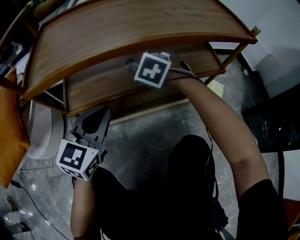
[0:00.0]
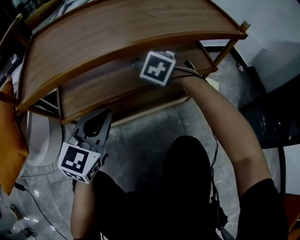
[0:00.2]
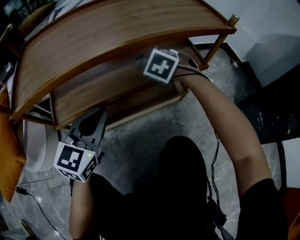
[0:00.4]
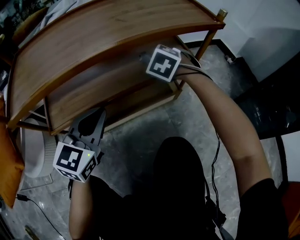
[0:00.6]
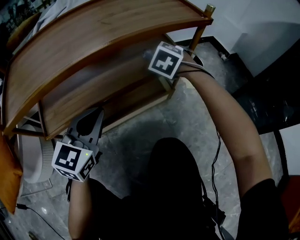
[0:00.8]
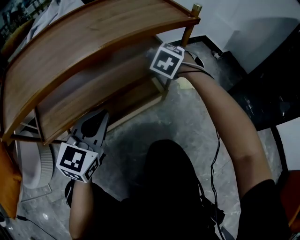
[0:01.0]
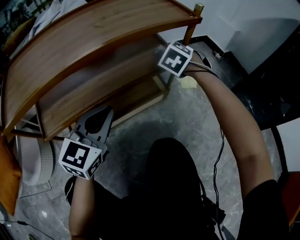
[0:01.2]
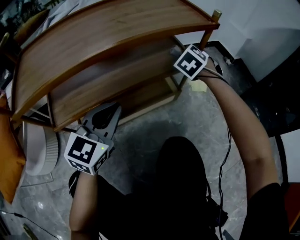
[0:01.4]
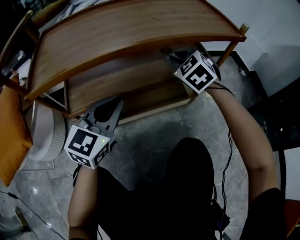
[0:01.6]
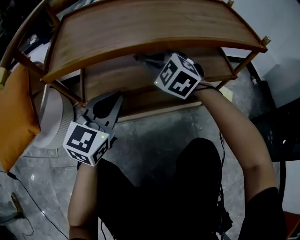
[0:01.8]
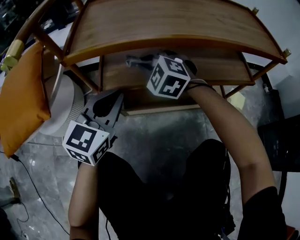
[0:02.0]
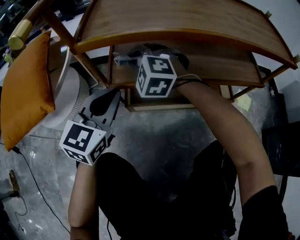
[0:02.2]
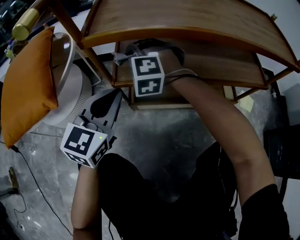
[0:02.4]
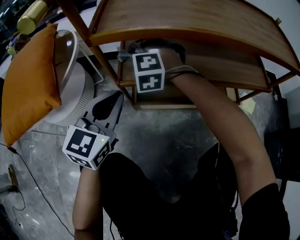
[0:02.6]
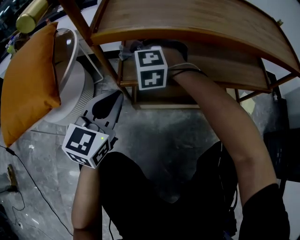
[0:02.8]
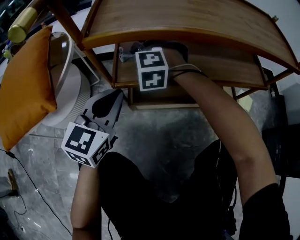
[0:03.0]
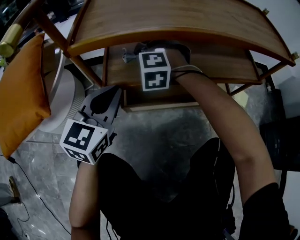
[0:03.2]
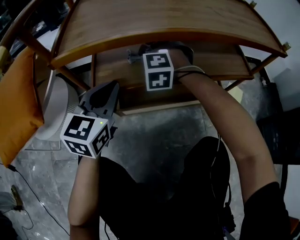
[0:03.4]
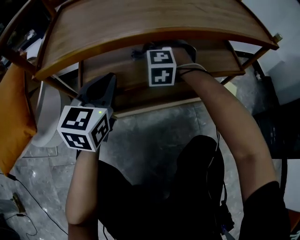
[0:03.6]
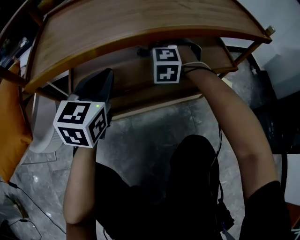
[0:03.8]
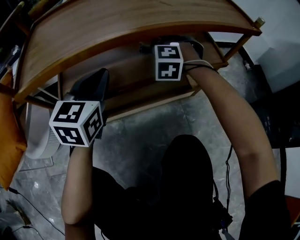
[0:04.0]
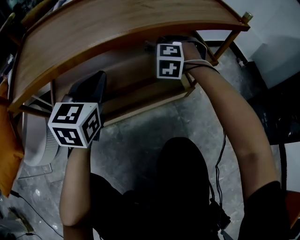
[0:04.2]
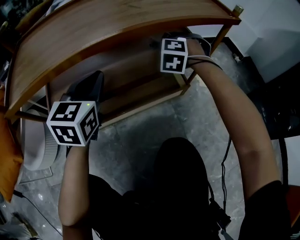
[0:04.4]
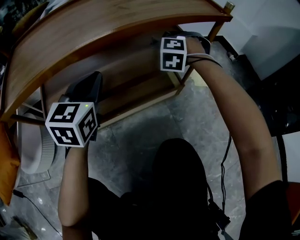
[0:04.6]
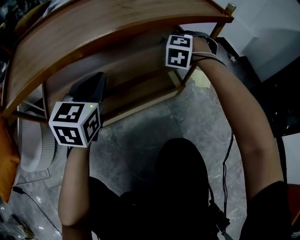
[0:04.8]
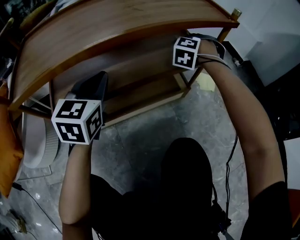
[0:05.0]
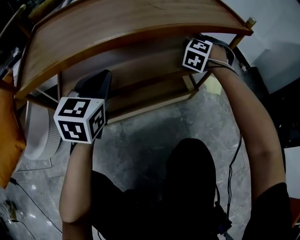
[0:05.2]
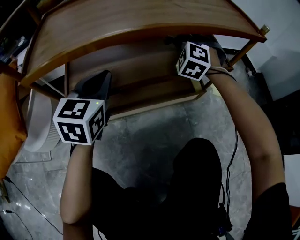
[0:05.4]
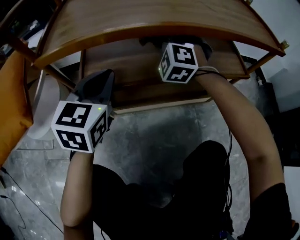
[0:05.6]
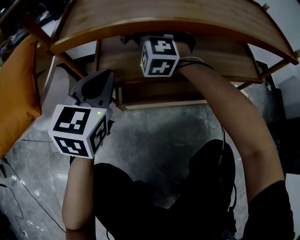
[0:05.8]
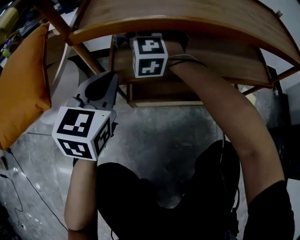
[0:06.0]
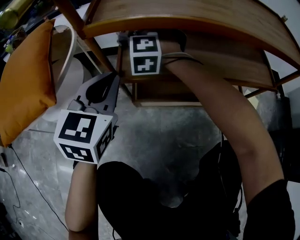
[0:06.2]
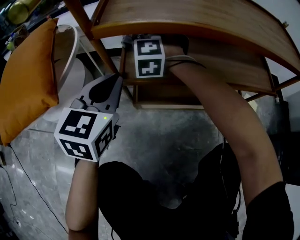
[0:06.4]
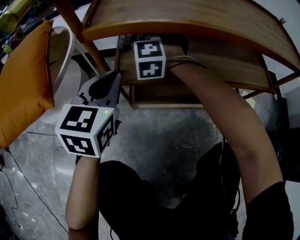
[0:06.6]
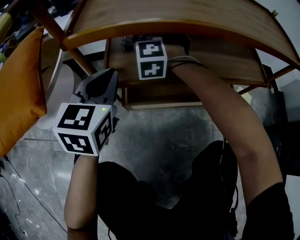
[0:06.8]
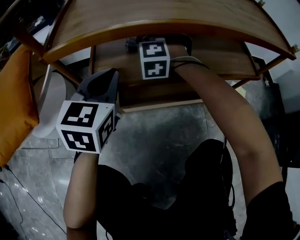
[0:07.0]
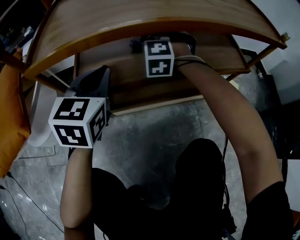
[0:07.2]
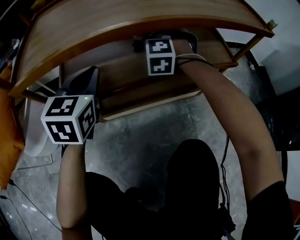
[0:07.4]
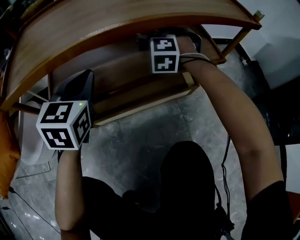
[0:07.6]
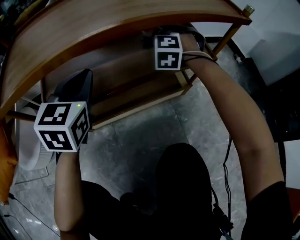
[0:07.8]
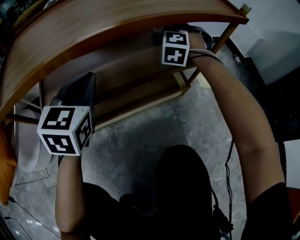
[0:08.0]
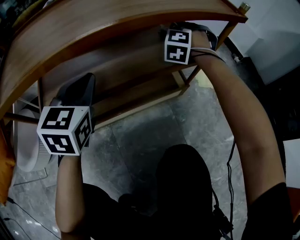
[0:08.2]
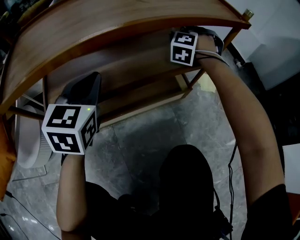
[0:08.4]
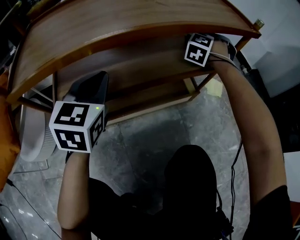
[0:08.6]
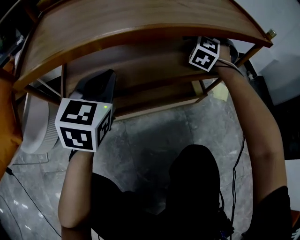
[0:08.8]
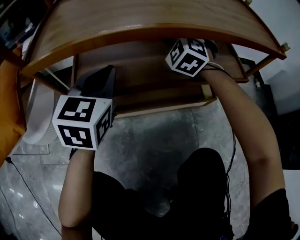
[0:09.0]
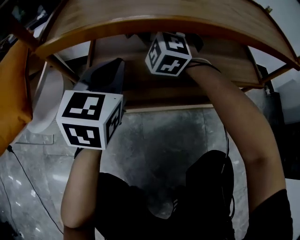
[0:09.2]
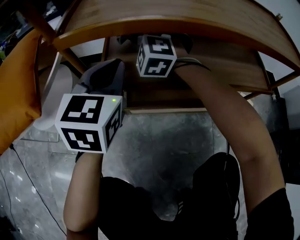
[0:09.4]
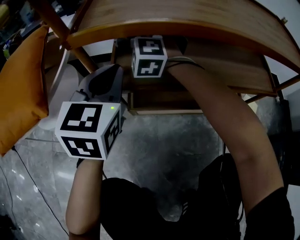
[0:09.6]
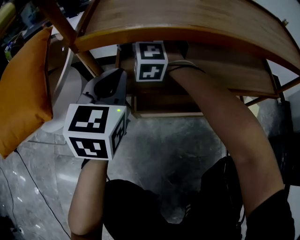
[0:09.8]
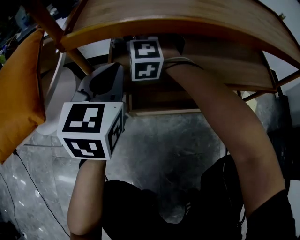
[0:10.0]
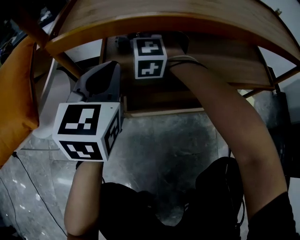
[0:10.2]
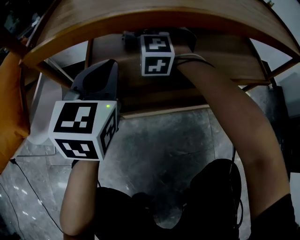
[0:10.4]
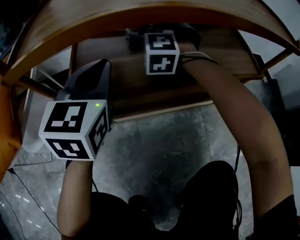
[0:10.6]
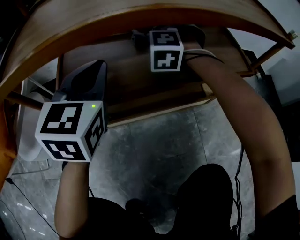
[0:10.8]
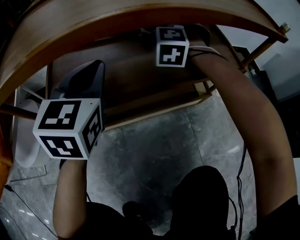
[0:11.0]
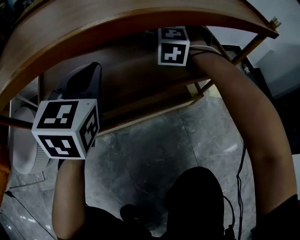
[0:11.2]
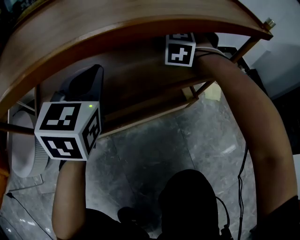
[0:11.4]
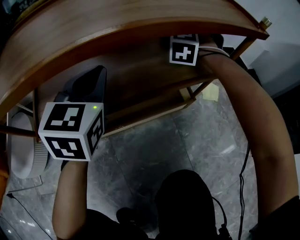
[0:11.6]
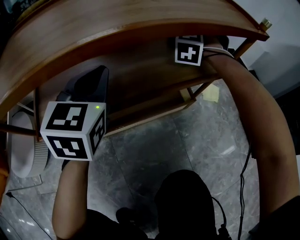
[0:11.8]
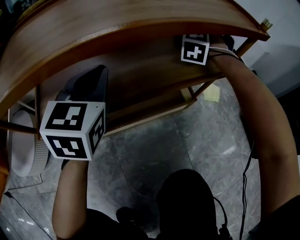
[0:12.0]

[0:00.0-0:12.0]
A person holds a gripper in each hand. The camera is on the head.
0:00.0 to 0:01.6: The right gripper rotates about 20 degrees.
0:01.6 to 0:03.0: The right gripper is displaced to the left by roughly 40 cm, and rolls counterclockwise, seen from behind, by some 50 degrees. Meanwhile the left gripper travels to the left by roughly 20 cm.
0:03.0 to 0:04.4: The left gripper goes approximately 25 cm to the right and forward, while the right gripper travels to the right by some 40 cm, and swivels roughly 40 degrees.
0:04.4 to 0:06.0: The left gripper moves some 20 cm. The right gripper moves some 40 cm, and swivels approximately 40 degrees.
0:06.0 to 0:07.6: The right gripper is displaced to the right by about 35 cm, and rotates some 30 degrees. Meanwhile the left gripper shifts about 15 cm to the right and forward.
0:07.6 to 0:09.0: The right gripper turns by approximately 20 degrees.
0:09.0 to 0:10.4: The right gripper goes some 15 cm to the left. The left gripper goes approximately 5 cm to the left.
0:10.4 to 0:12.0: The right gripper changes place by some 40 cm, and rotates some 40 degrees, while the left gripper ends up some 15 cm from where it was.

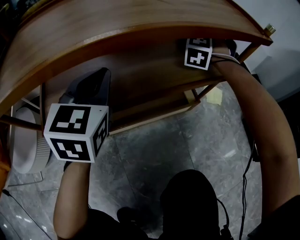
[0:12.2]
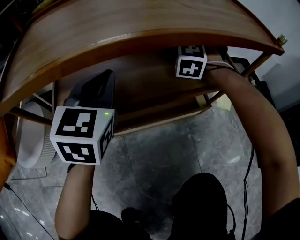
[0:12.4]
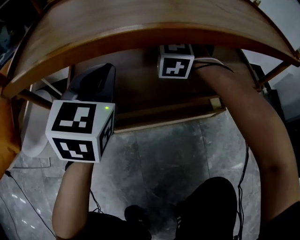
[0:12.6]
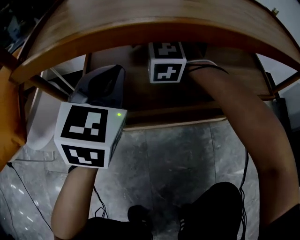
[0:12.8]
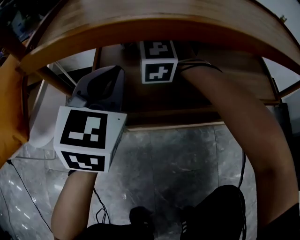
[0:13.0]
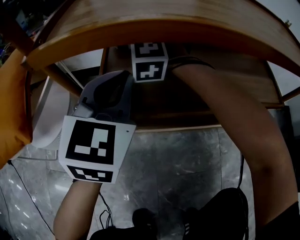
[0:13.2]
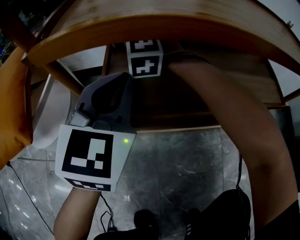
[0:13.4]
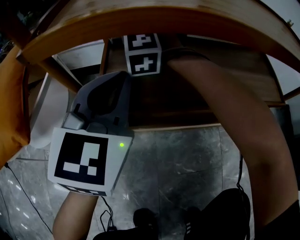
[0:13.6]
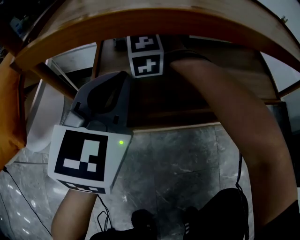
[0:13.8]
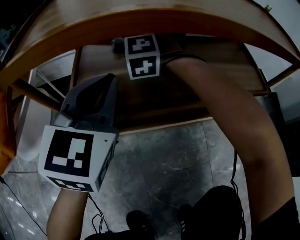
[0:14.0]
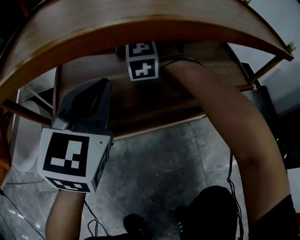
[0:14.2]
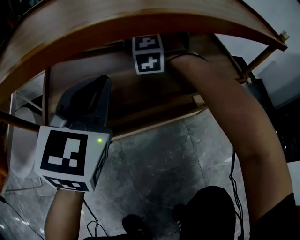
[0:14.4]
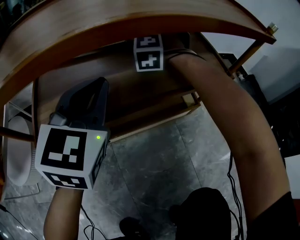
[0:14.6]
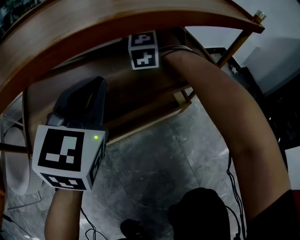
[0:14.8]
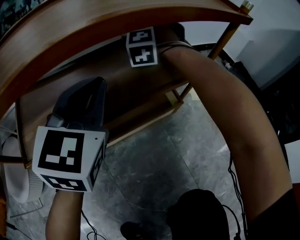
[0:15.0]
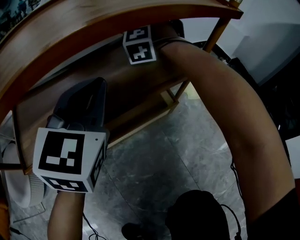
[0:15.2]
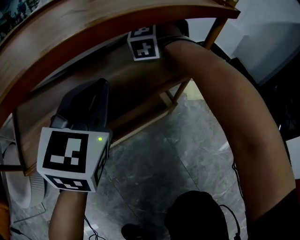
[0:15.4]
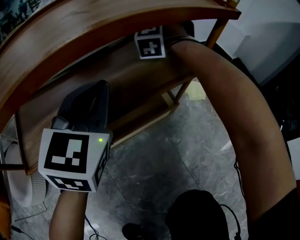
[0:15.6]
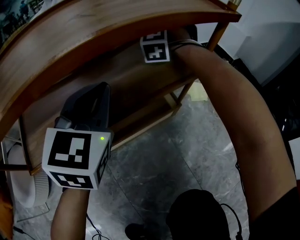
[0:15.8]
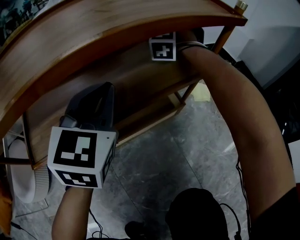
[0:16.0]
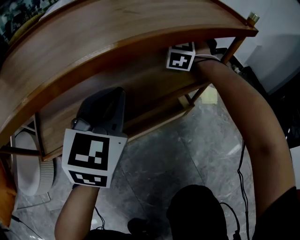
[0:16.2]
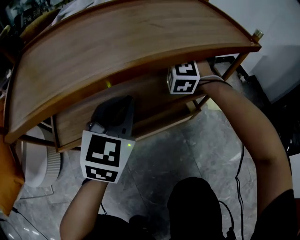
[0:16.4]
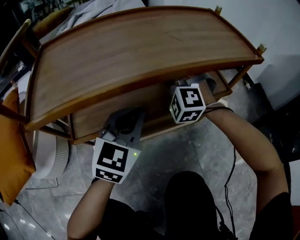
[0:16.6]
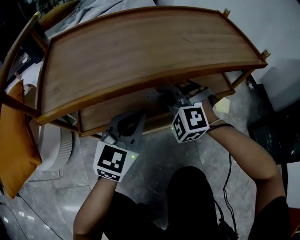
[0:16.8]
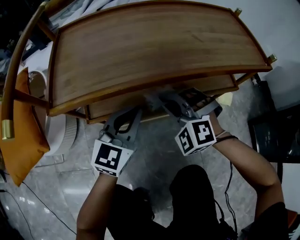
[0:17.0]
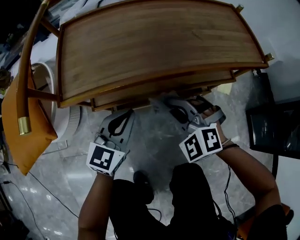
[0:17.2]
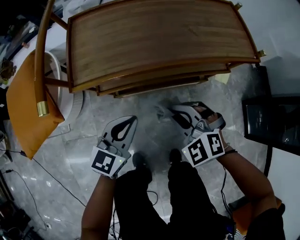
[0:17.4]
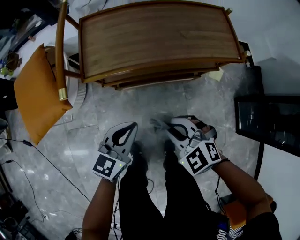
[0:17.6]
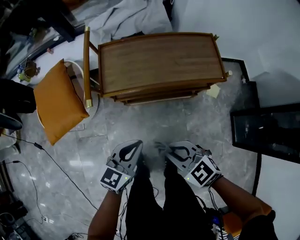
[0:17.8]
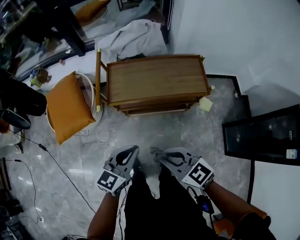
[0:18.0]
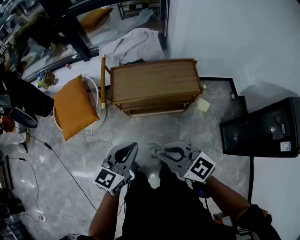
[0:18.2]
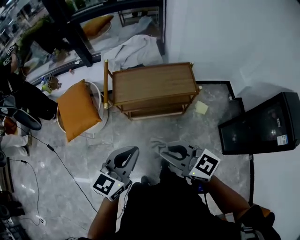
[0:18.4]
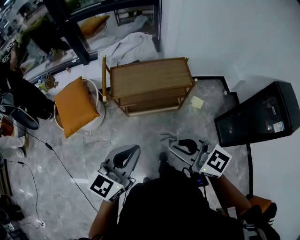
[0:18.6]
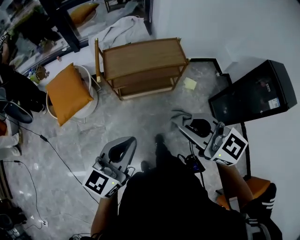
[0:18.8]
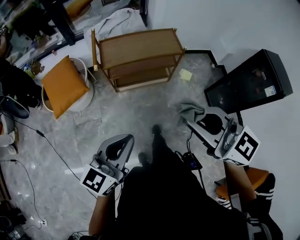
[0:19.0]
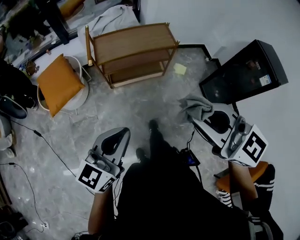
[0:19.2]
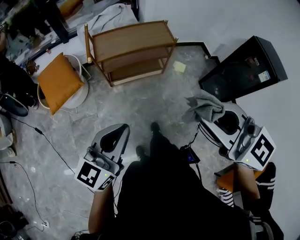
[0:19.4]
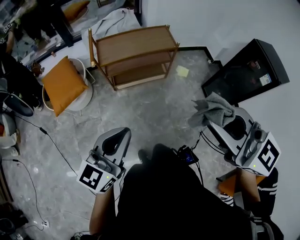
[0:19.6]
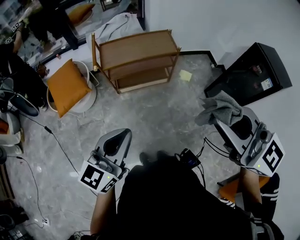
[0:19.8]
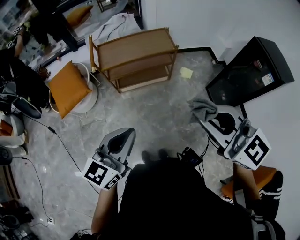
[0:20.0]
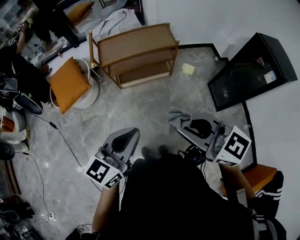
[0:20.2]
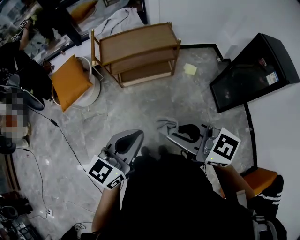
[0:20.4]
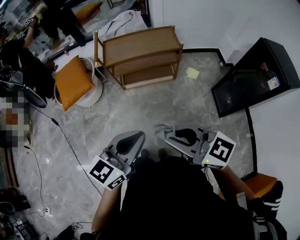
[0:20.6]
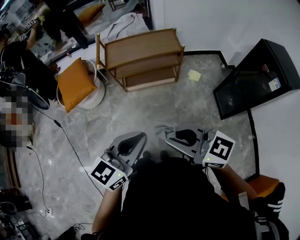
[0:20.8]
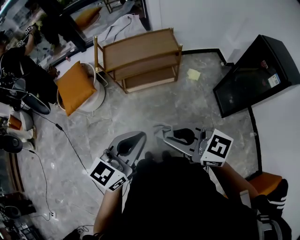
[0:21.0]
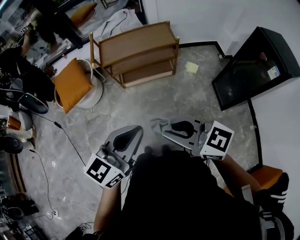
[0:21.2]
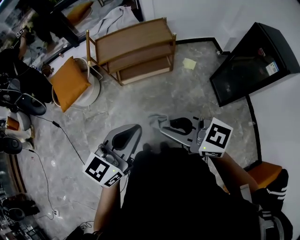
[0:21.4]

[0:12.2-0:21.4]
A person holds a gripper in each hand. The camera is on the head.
0:12.2 to 0:13.8: The left gripper shifts by approximately 15 cm. The right gripper ends up about 50 cm from where it was, and turns by some 40 degrees.
0:13.8 to 0:15.2: The left gripper shifts by roughly 25 cm, and changes its angle by about 20 degrees. The right gripper ends up some 40 cm from where it was, and turns by about 40 degrees.
0:15.2 to 0:16.8: The right gripper shifts some 30 cm backward and to the left, and swivels approximately 30 degrees, while the left gripper moves backward and to the left, some 15 cm.
0:16.8 to 0:18.4: The two grippers go some 70 cm upward and backward. The right gripper rotates some 80 degrees.
0:18.4 to 0:19.8: The left gripper is displaced backward by some 20 cm. Meanwhile the right gripper is displaced backward and upward by some 30 cm, and rotates approximately 30 degrees.
0:19.8 to 0:21.4: The right gripper heads downward, covering roughly 15 cm, and turns by roughly 30 degrees; the left gripper goes some 10 cm to the right.

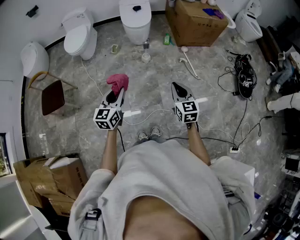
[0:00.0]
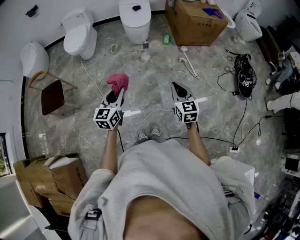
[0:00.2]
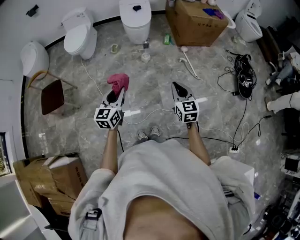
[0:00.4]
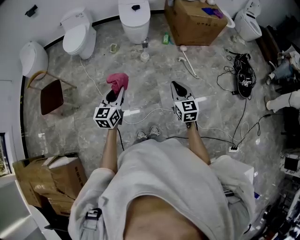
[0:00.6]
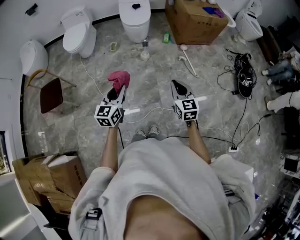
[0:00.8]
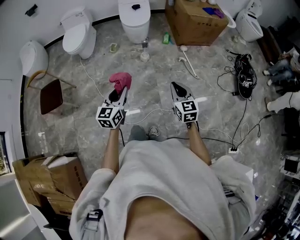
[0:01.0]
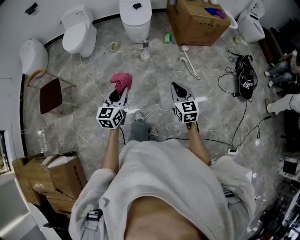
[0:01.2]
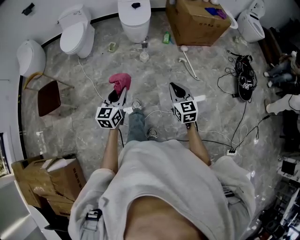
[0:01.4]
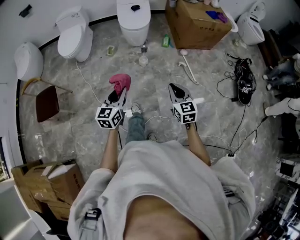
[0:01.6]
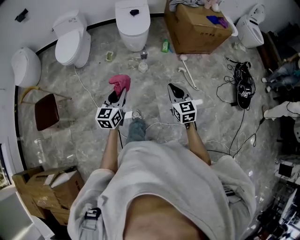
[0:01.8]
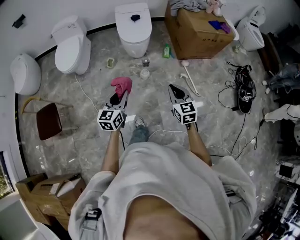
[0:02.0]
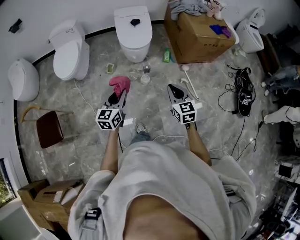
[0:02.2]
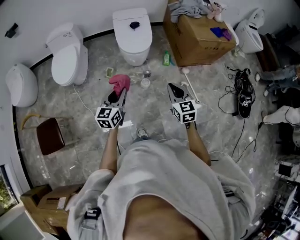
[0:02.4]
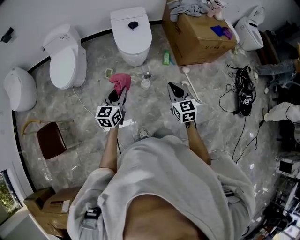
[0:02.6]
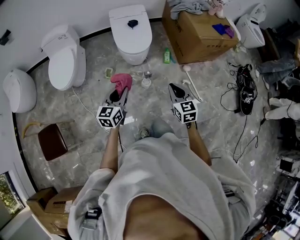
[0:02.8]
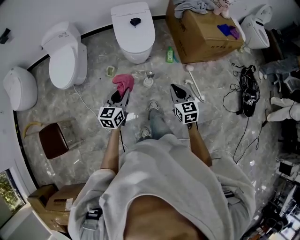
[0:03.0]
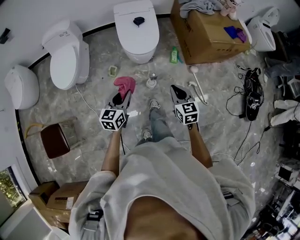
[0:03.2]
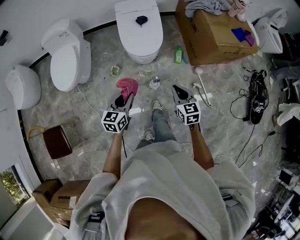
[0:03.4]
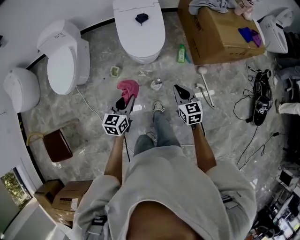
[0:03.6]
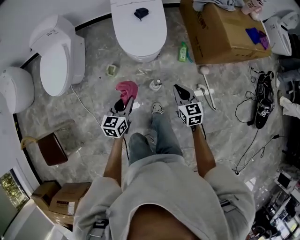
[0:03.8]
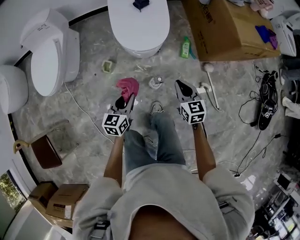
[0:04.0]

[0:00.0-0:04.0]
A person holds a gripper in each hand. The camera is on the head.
0:00.0 to 0:01.4: Both grippers move forward, approximately 5 cm.
0:01.4 to 0:02.6: Both grippers travel together forward, approximately 35 cm.
0:02.6 to 0:04.0: The two grippers go roughly 35 cm downward and forward.
